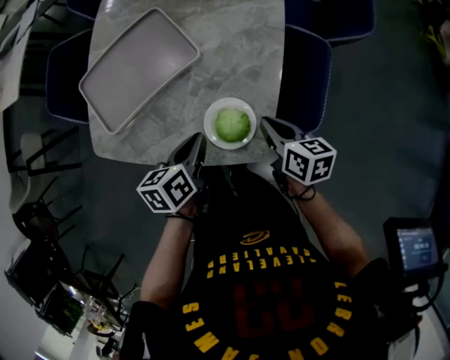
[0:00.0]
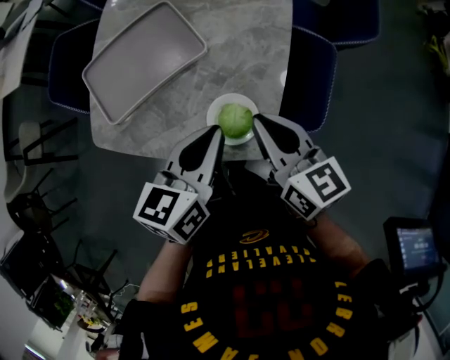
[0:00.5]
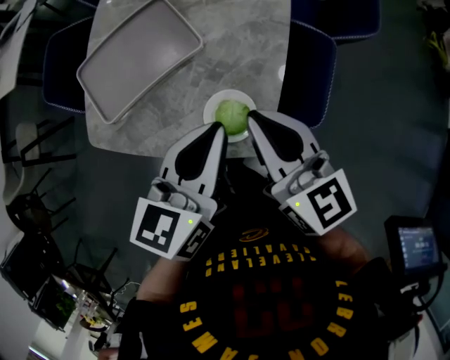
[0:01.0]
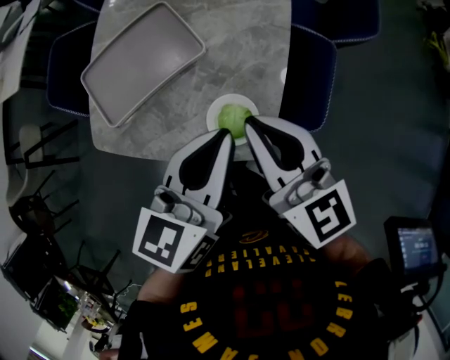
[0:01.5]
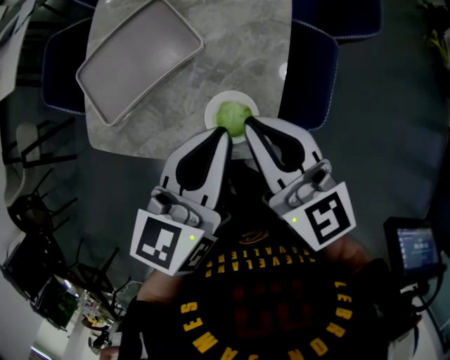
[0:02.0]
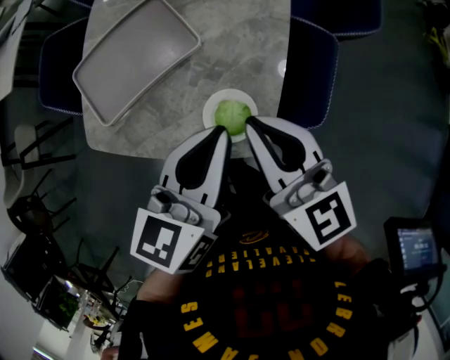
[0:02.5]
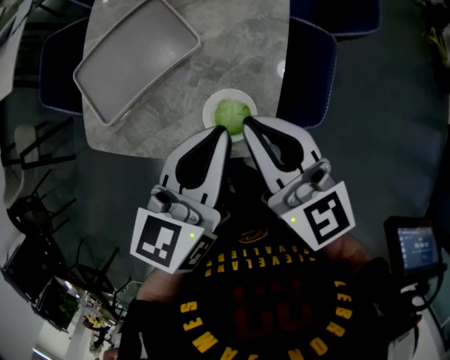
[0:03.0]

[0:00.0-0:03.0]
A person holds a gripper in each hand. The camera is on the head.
0:00.0 to 0:01.5: The two grippers go about 20 cm upward. The left gripper rotates approximately 30 degrees, while the right gripper turns by some 40 degrees.
0:01.5 to 0:03.0: The two grippers keep their place.

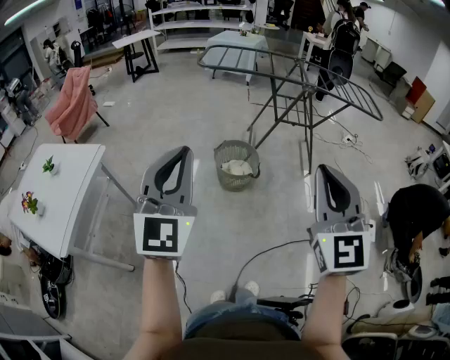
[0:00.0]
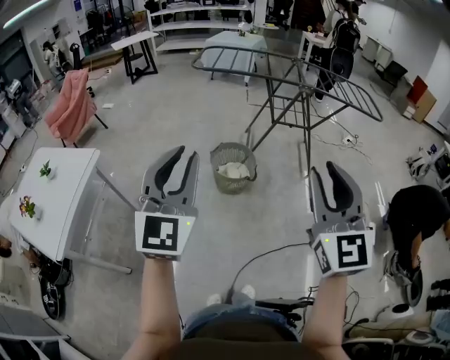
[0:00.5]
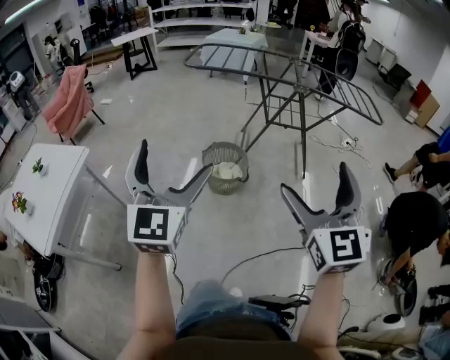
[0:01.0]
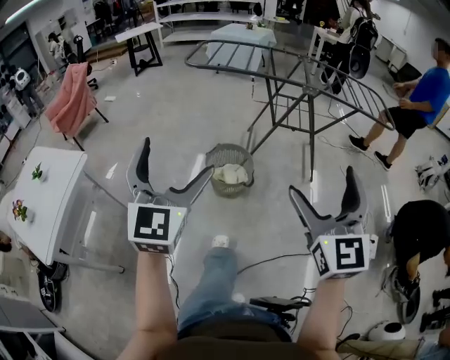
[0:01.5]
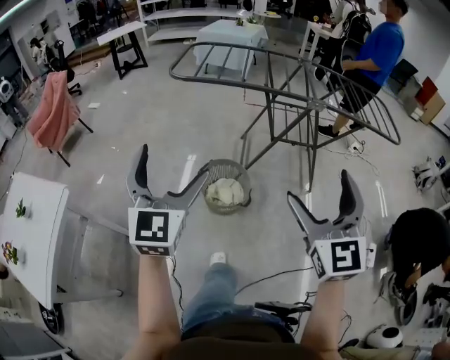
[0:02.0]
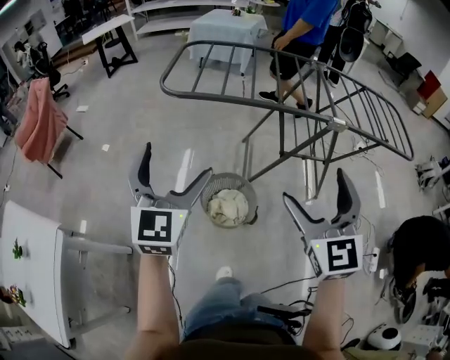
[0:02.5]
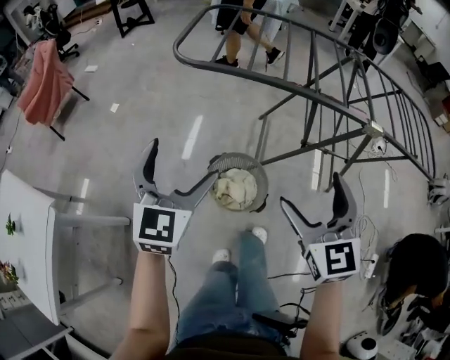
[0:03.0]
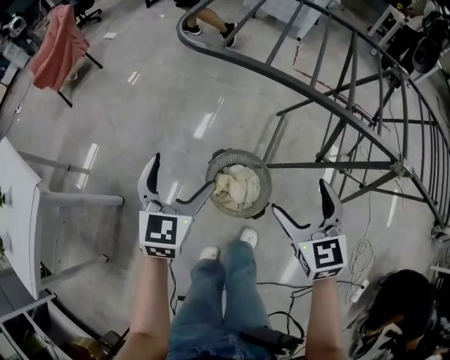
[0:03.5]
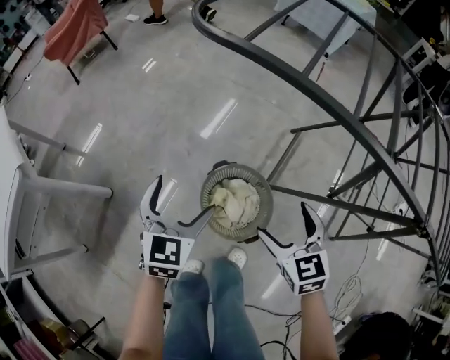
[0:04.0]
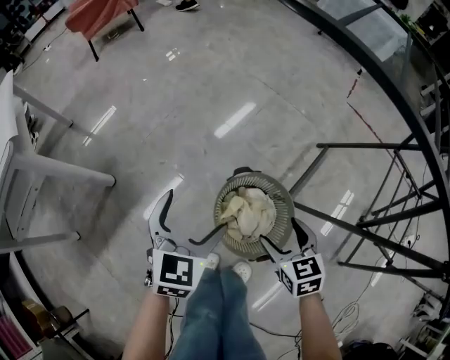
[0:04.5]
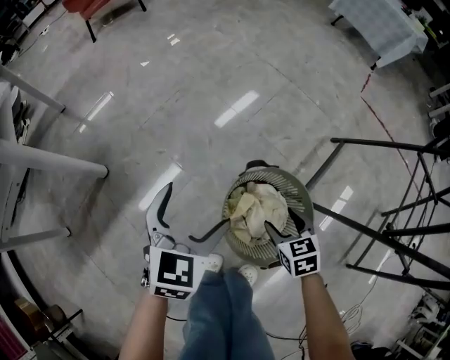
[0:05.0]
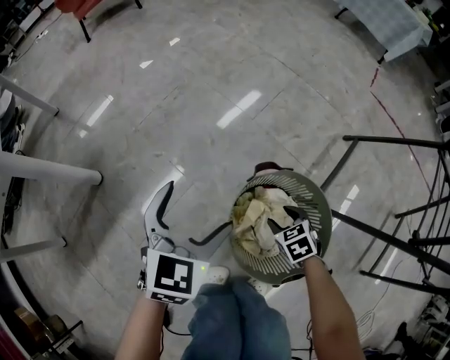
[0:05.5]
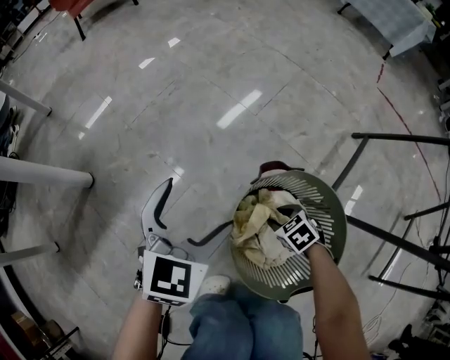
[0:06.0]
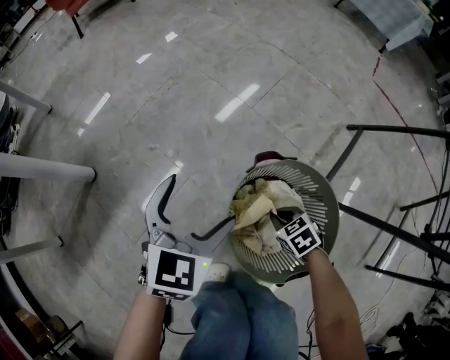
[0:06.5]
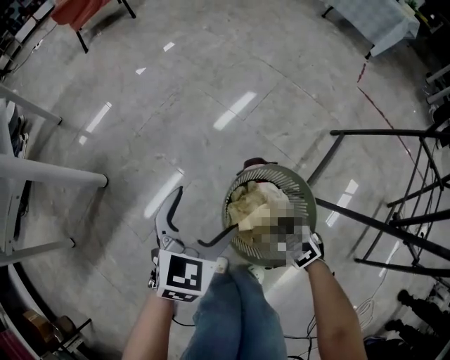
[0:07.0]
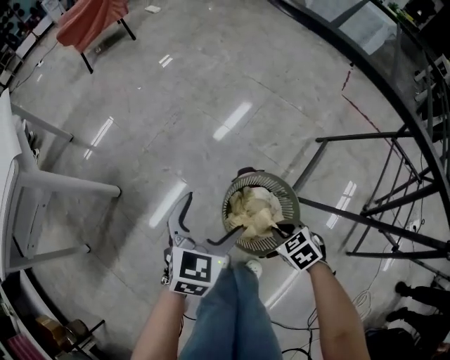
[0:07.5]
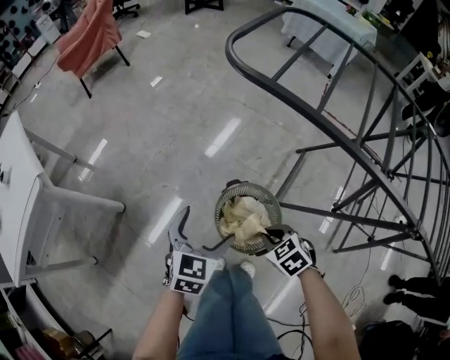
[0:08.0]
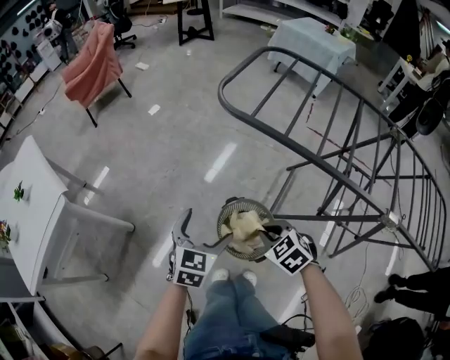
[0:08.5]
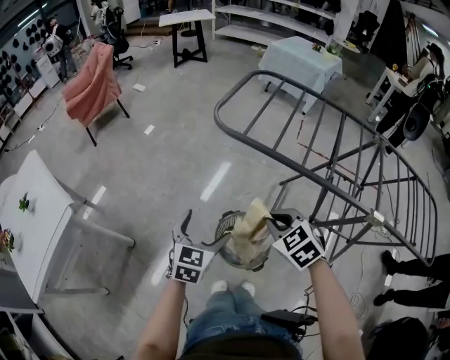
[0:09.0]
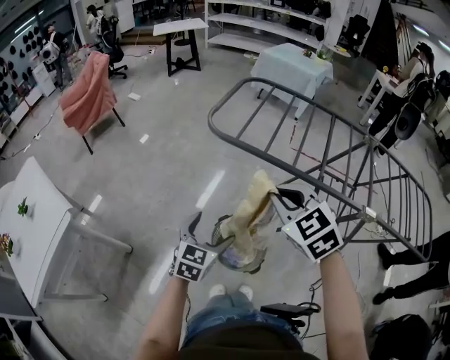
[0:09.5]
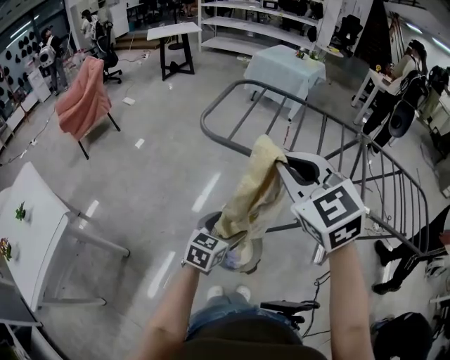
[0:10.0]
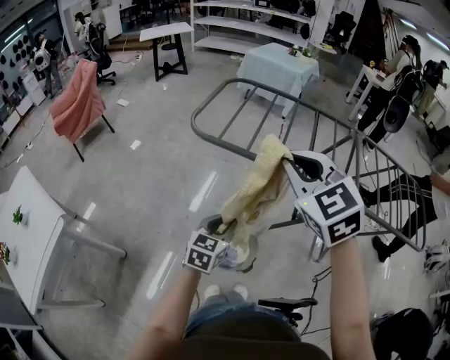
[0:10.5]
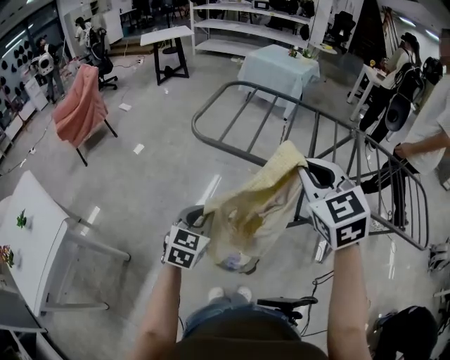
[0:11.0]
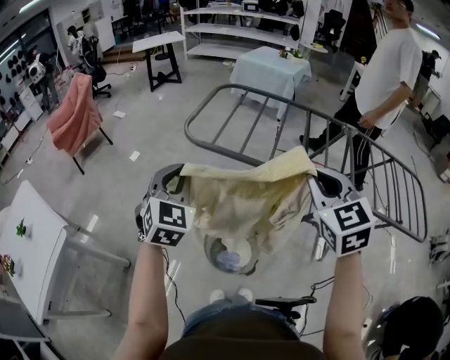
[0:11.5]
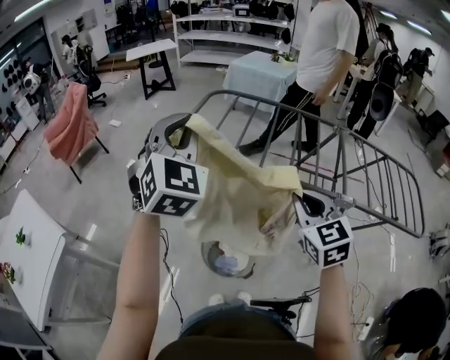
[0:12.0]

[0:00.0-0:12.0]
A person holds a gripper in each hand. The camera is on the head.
0:00.0 to 0:02.0: The two grippers go approximately 35 cm forward. The left gripper opens its fingers. The right gripper opens.
0:02.0 to 0:04.0: The left gripper heads downward, covering some 35 cm, and turns by approximately 40 degrees; the right gripper ends up some 60 cm from where it was, and tilts its fingers roughly 30 degrees downward.
0:04.0 to 0:06.0: The right gripper is displaced downward by some 60 cm, tilts its fingers approximately 30 degrees downward, and closes its fingers. Meanwhile the left gripper is displaced downward by some 30 cm.
0:06.0 to 0:08.0: Both grippers move upward, roughly 40 cm.
0:08.0 to 0:10.0: The left gripper goes some 15 cm upward, and rotates about 20 degrees. The right gripper is displaced upward by roughly 50 cm, and tips its fingers upward by roughly 40 degrees.
0:10.0 to 0:12.0: The right gripper goes some 15 cm to the right and downward, and changes its angle by roughly 20 degrees; the left gripper moves upward, some 35 cm, swivels about 60 degrees, and closes its fingers.

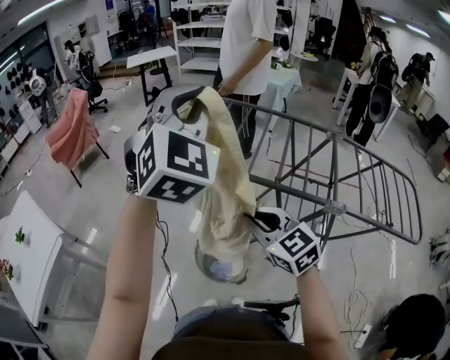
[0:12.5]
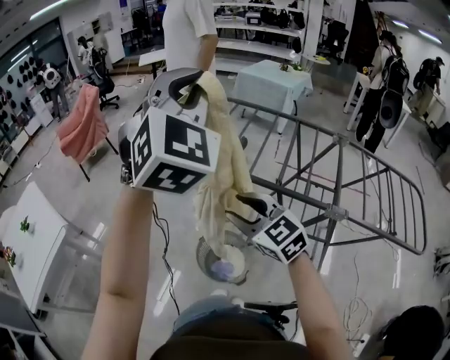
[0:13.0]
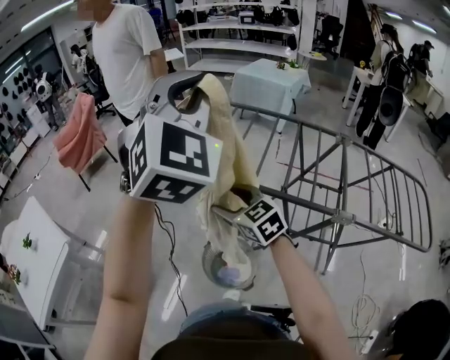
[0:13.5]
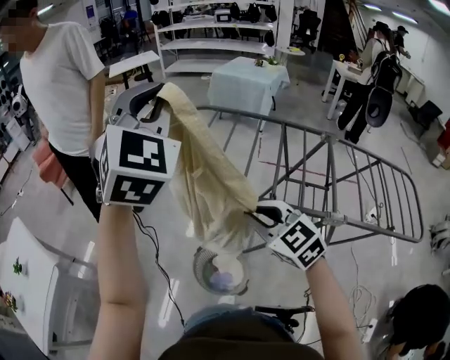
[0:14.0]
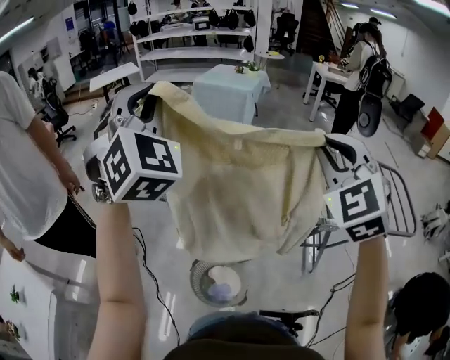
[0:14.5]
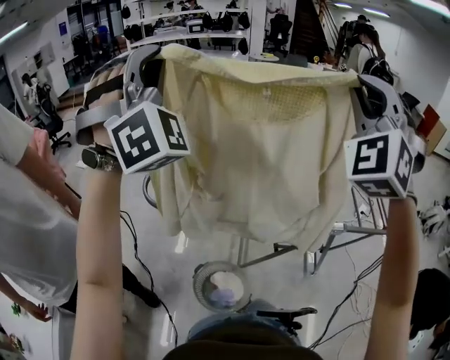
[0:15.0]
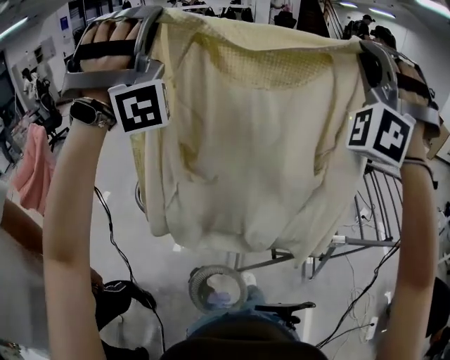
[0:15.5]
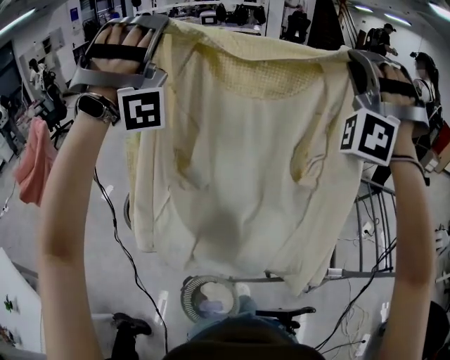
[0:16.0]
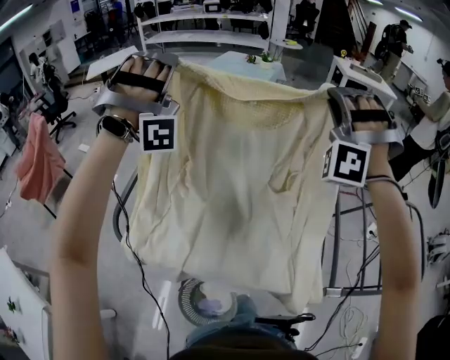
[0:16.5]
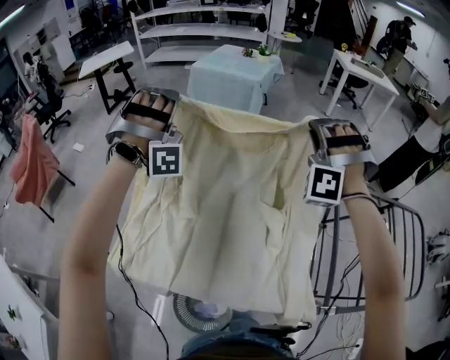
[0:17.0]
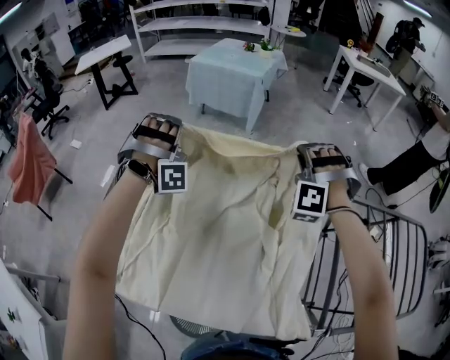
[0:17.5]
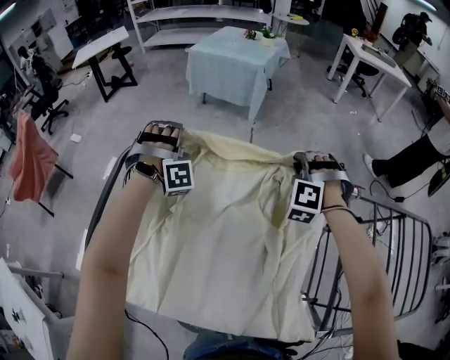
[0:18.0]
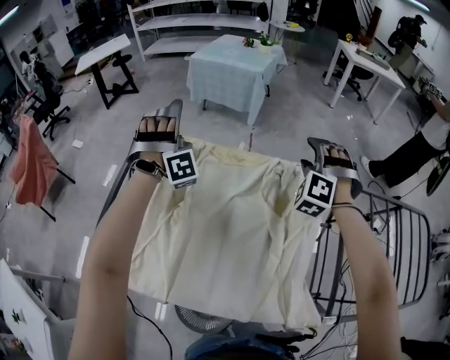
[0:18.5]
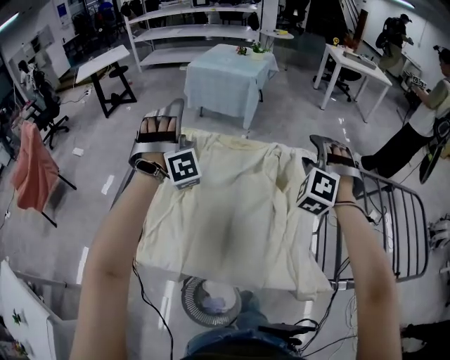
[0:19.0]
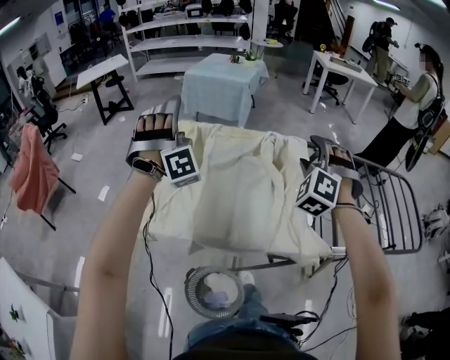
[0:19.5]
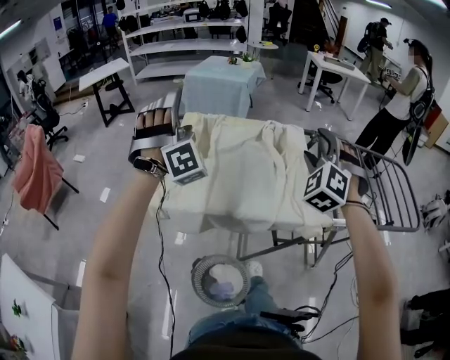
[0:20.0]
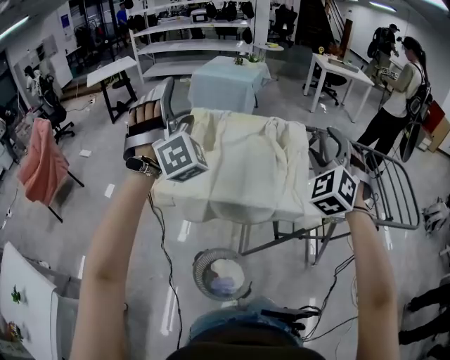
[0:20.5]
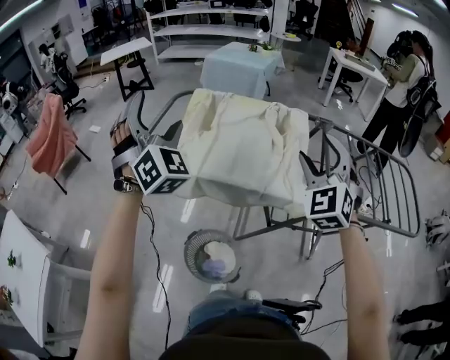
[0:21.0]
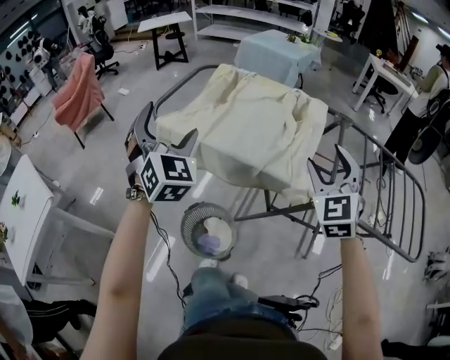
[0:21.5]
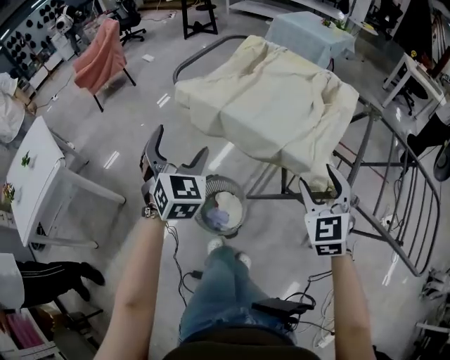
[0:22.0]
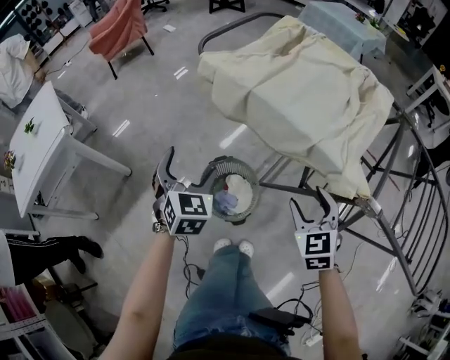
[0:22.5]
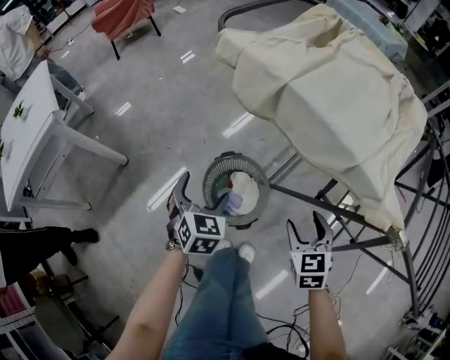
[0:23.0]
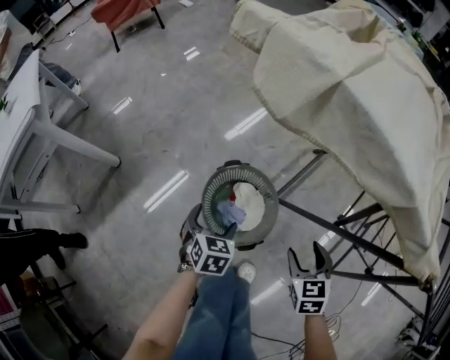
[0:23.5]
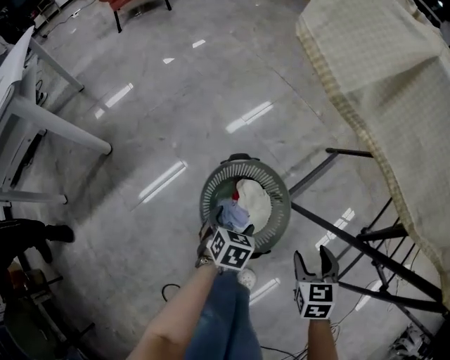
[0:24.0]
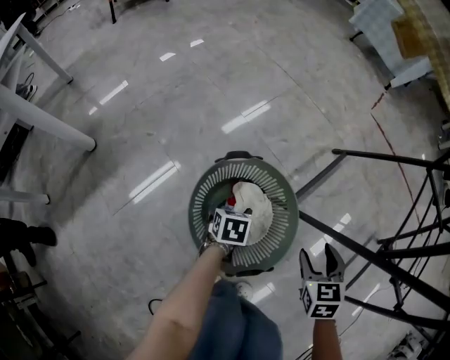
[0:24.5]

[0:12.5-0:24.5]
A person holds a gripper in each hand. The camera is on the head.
0:12.5 to 0:14.5: The right gripper shifts some 20 cm upward, turns by approximately 50 degrees, and opens, then closes again. Meanwhile the left gripper moves some 15 cm.
0:14.5 to 0:16.5: Both grippers move forward, roughly 35 cm. The left gripper rolls clockwise, seen from behind, by approximately 70 degrees. The right gripper twists about 60 degrees counterclockwise, seen from behind.
0:16.5 to 0:18.5: The right gripper is displaced downward by roughly 25 cm, points its fingers some 30 degrees further downward, and opens its fingers, while the left gripper travels downward and forward by about 30 cm, changes its angle by approximately 40 degrees, and opens.
0:18.5 to 0:20.5: Both grippers travel together backward and upward, some 40 cm. The right gripper rotates about 30 degrees; the left gripper changes its angle by roughly 30 degrees.
0:20.5 to 0:22.5: The grippers both shift downward by some 30 cm. The left gripper angles its fingers downward, by approximately 30 degrees; the right gripper swivels roughly 50 degrees.
0:22.5 to 0:24.5: The grippers both shift downward by about 50 cm. The right gripper rotates approximately 20 degrees. Meanwhile the left gripper tips its fingers downward by approximately 30 degrees.
